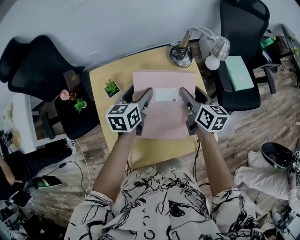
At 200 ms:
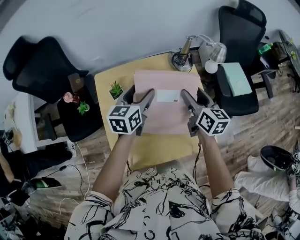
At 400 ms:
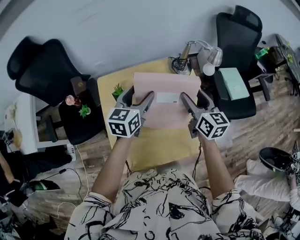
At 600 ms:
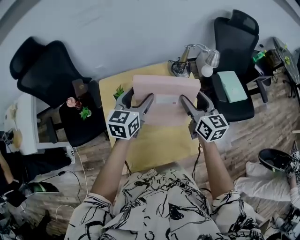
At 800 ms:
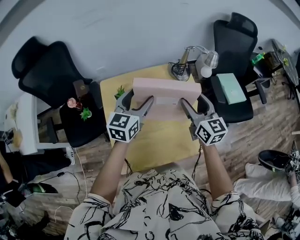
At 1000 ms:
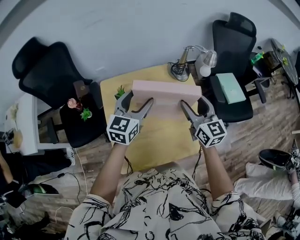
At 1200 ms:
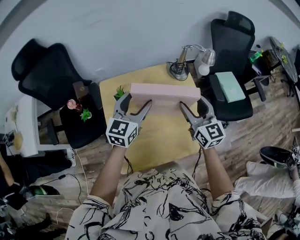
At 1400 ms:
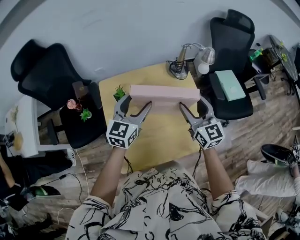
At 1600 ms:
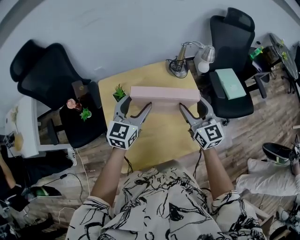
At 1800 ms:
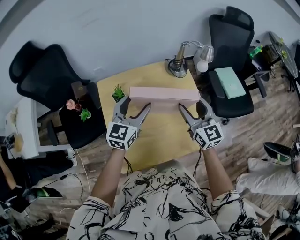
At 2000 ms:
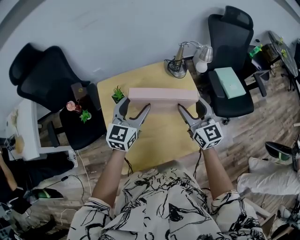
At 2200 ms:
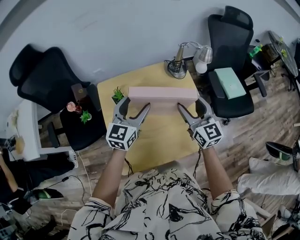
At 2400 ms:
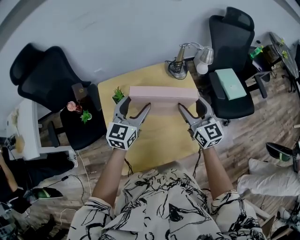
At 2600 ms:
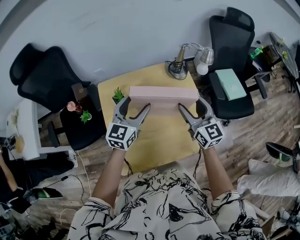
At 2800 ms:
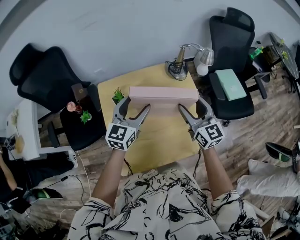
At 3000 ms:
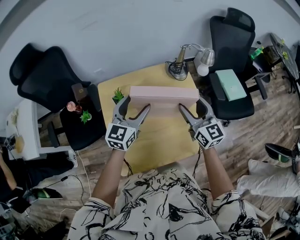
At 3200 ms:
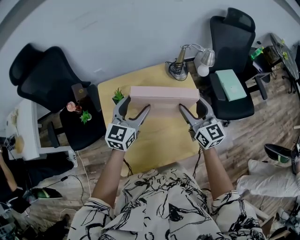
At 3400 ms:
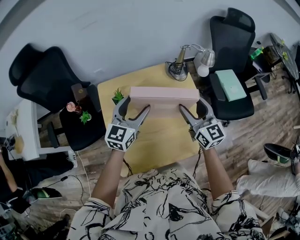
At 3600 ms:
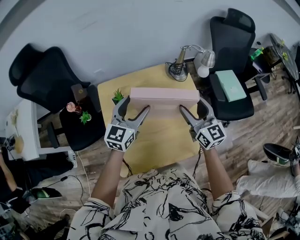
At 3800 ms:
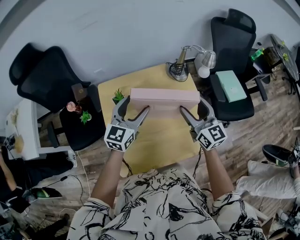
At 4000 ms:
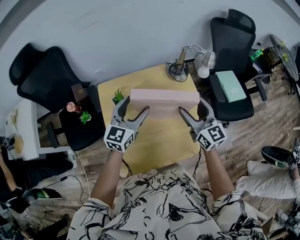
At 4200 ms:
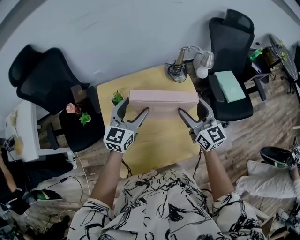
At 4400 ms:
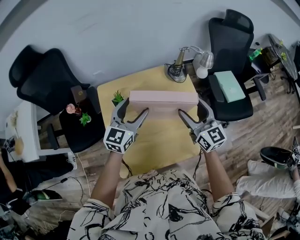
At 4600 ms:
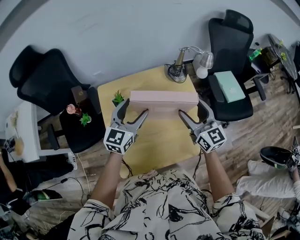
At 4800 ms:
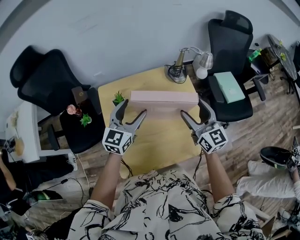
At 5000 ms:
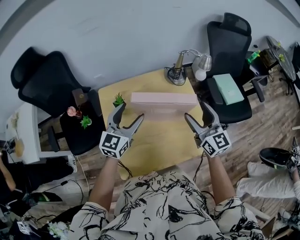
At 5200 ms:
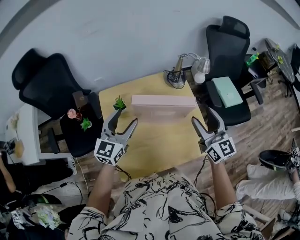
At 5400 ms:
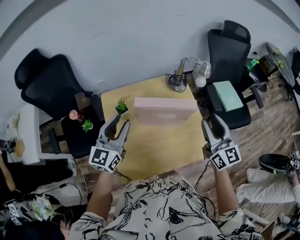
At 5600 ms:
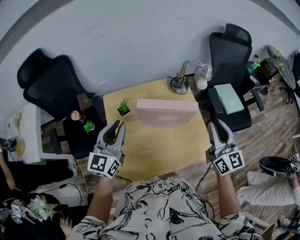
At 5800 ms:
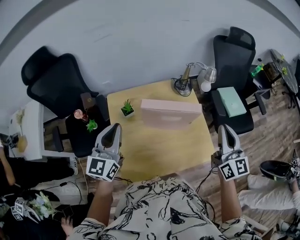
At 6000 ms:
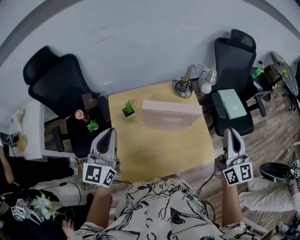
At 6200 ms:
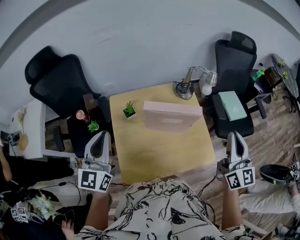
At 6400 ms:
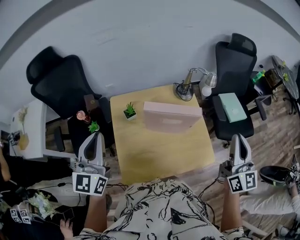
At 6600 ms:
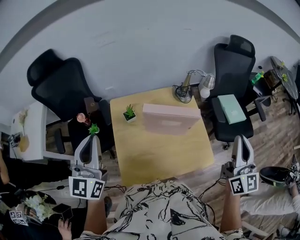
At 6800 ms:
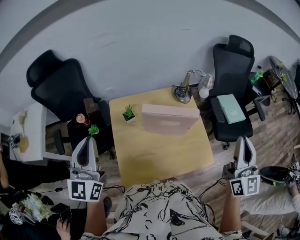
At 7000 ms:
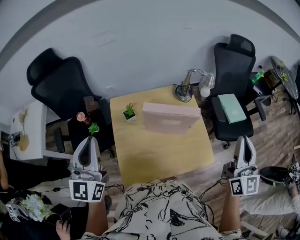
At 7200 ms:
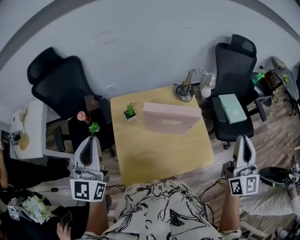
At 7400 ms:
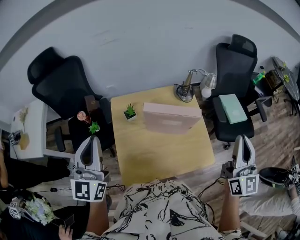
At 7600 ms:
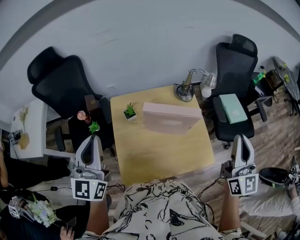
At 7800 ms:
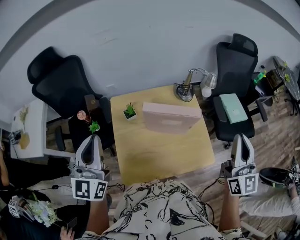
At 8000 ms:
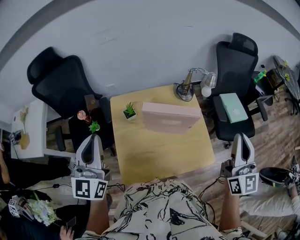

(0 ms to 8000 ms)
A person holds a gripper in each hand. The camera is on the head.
0 ms - 1600 ms: The grippers both shift upward and backward by some 15 cm. The left gripper rotates approximately 30 degrees. The right gripper turns by some 40 degrees.
1600 ms - 4800 ms: The grippers stay close to where they were, moving slightly.
4800 ms - 6400 ms: The left gripper is displaced upward, to the left and backward by roughly 25 cm, turns by roughly 30 degrees, and closes its fingers. Meanwhile the right gripper shifts about 20 cm upward, to the right and backward, swivels about 20 degrees, and closes up.
6400 ms - 8000 ms: The grippers stay close to where they were, moving slightly.

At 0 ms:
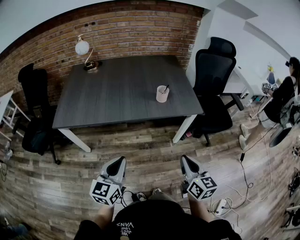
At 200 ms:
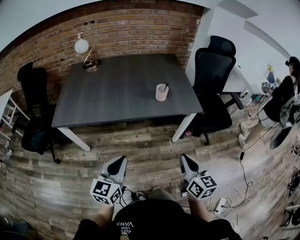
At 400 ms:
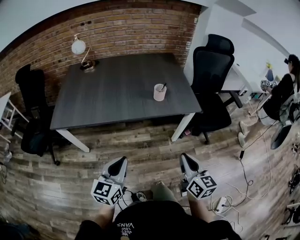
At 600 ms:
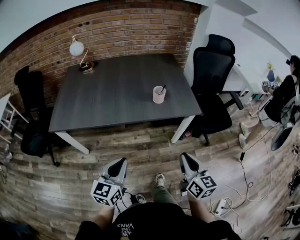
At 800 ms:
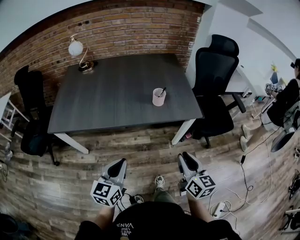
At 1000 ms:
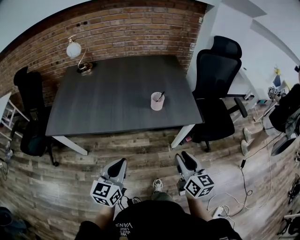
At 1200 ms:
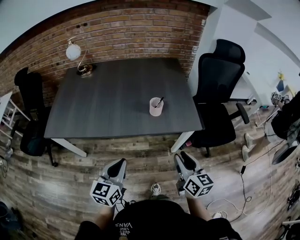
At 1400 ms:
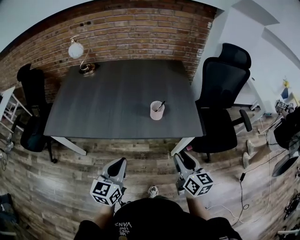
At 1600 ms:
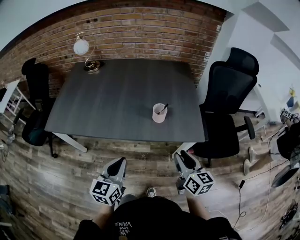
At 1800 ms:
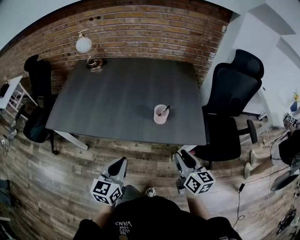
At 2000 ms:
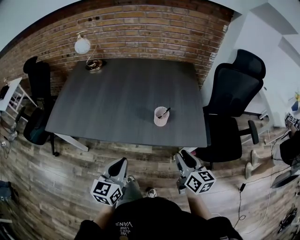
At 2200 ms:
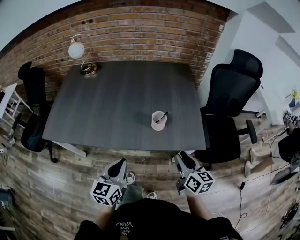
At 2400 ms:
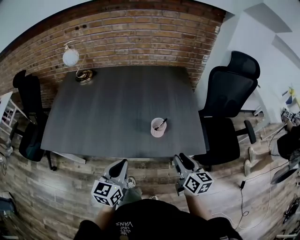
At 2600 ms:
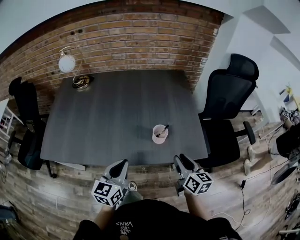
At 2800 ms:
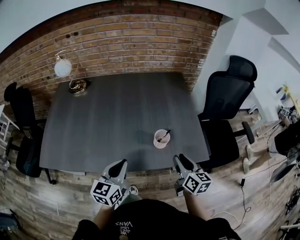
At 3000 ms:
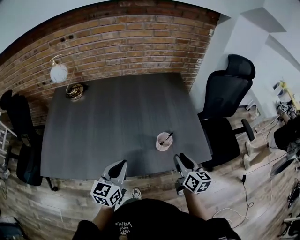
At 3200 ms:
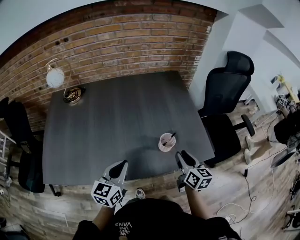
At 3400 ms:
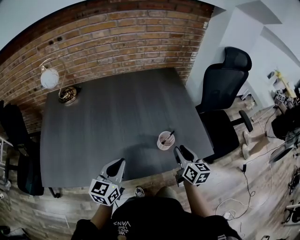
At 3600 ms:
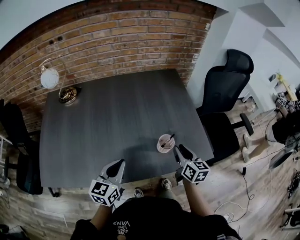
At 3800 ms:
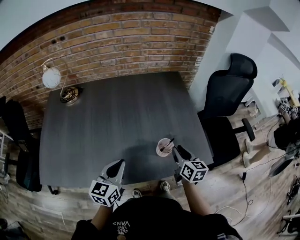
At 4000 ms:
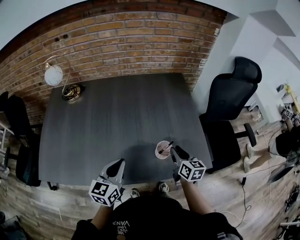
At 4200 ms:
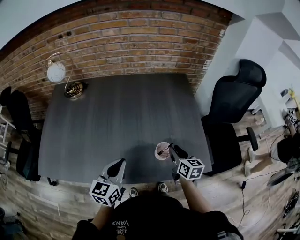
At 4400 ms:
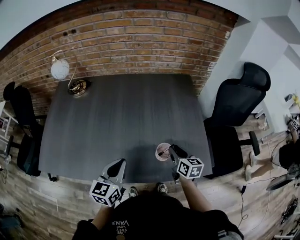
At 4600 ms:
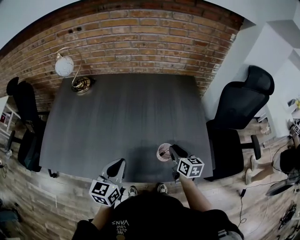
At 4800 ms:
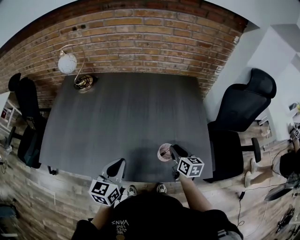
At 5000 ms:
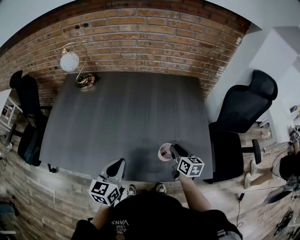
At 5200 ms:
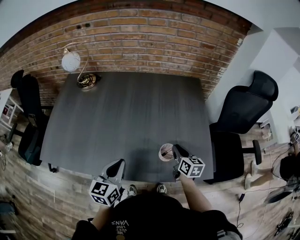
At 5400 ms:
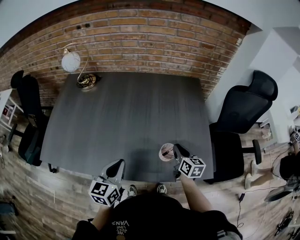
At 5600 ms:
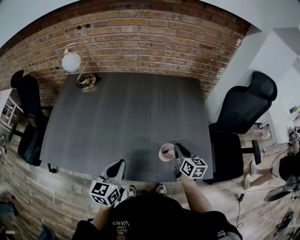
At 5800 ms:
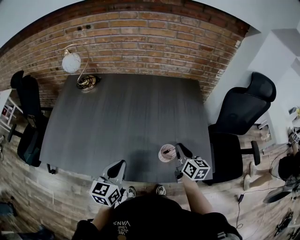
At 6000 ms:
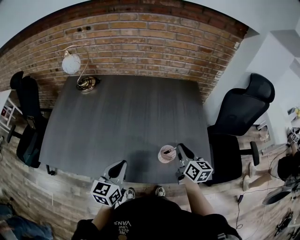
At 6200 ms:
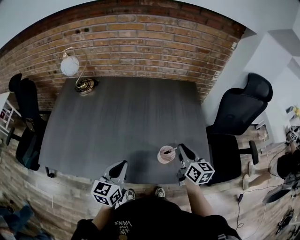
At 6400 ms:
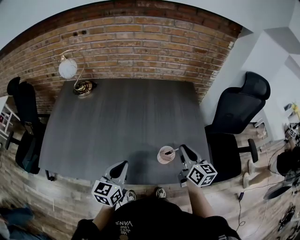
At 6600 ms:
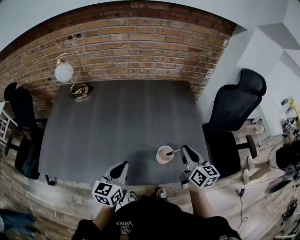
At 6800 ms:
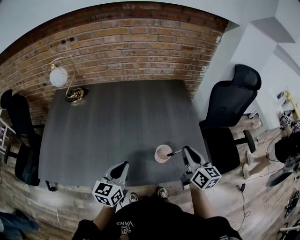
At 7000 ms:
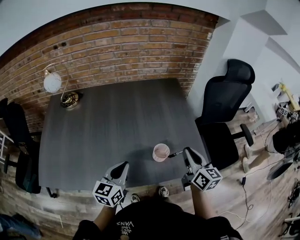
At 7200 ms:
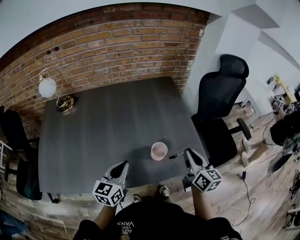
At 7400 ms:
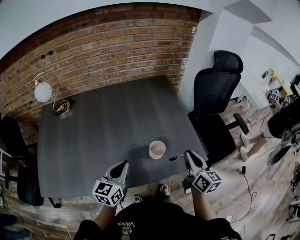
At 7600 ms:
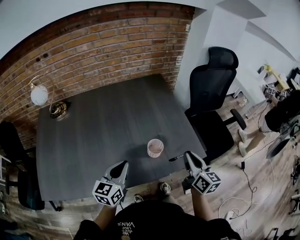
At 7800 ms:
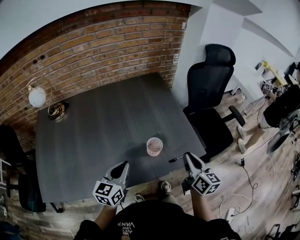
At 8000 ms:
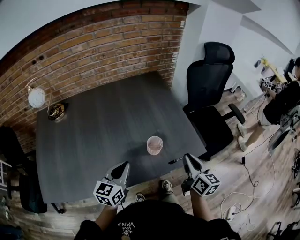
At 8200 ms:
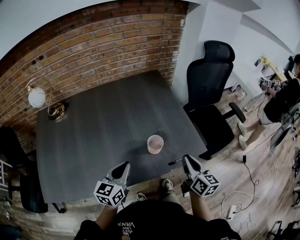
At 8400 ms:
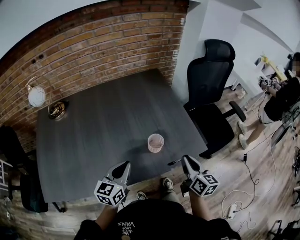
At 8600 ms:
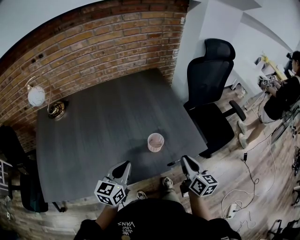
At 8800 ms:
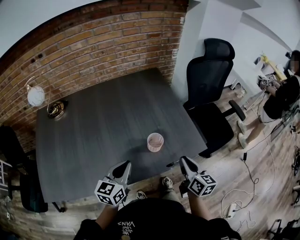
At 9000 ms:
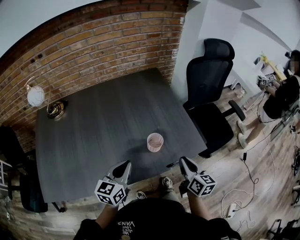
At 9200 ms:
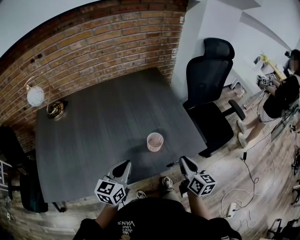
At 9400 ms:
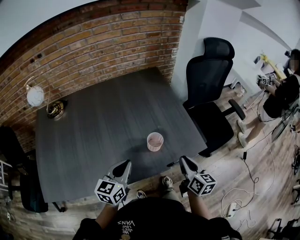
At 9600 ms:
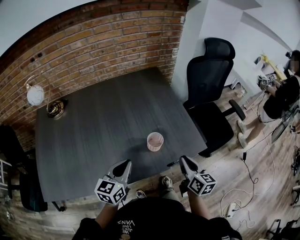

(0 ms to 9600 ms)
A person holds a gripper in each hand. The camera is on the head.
0 ms - 1600 ms: The left gripper moves forward and to the right, some 20 cm. The right gripper shifts roughly 25 cm forward, and opens up.
1600 ms - 3200 ms: The grippers both shift forward by about 20 cm.
3200 ms - 4800 ms: The right gripper goes approximately 15 cm forward and downward.
4800 ms - 6400 ms: The right gripper moves upward, about 10 cm.
6400 ms - 8000 ms: The right gripper goes roughly 15 cm backward and to the right, and turns by about 20 degrees. Meanwhile the left gripper swivels roughly 20 degrees.
8000 ms - 9600 ms: The grippers make only small movements.

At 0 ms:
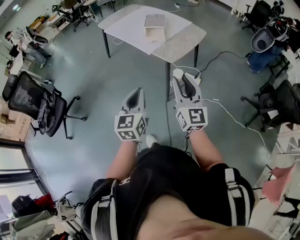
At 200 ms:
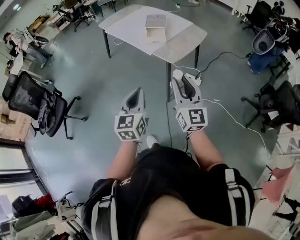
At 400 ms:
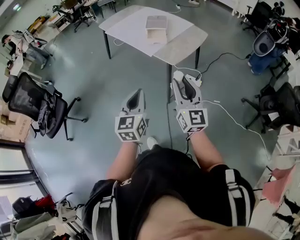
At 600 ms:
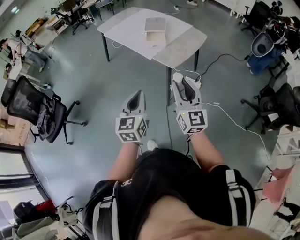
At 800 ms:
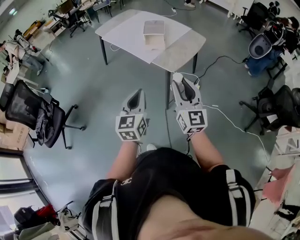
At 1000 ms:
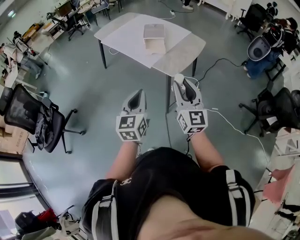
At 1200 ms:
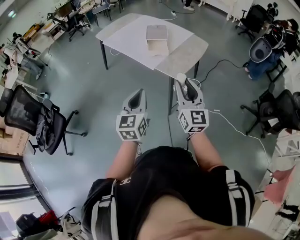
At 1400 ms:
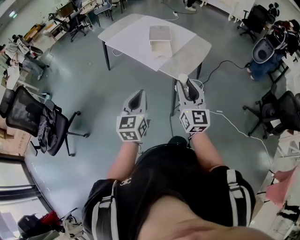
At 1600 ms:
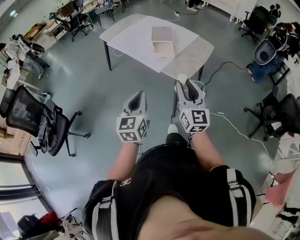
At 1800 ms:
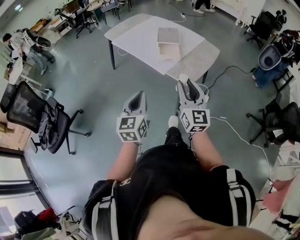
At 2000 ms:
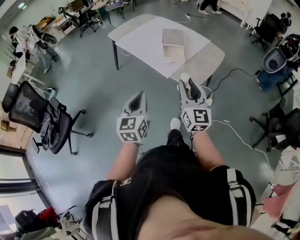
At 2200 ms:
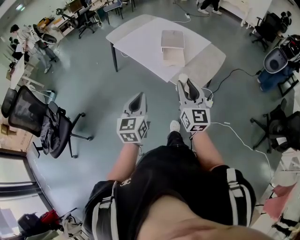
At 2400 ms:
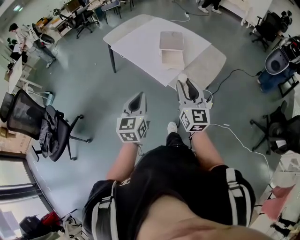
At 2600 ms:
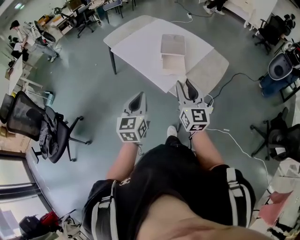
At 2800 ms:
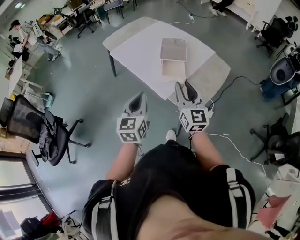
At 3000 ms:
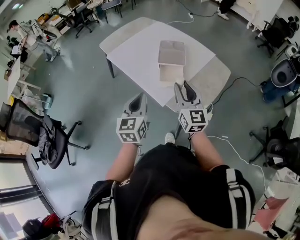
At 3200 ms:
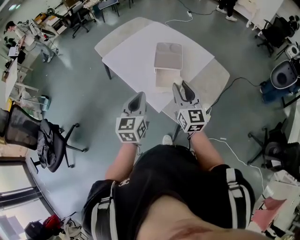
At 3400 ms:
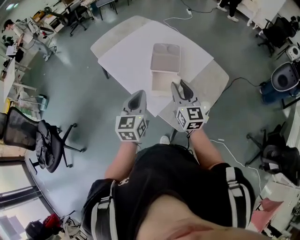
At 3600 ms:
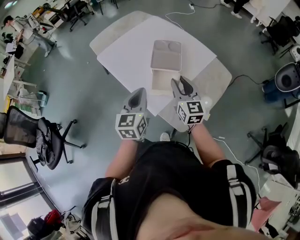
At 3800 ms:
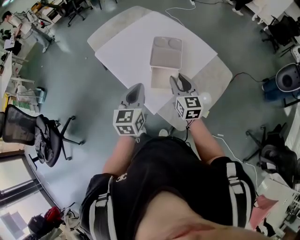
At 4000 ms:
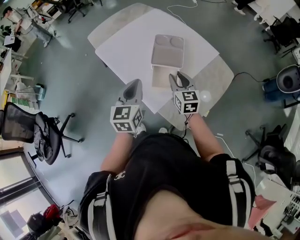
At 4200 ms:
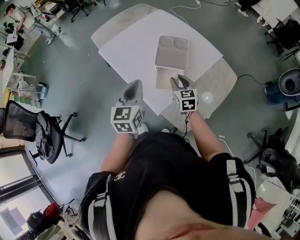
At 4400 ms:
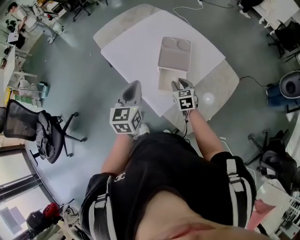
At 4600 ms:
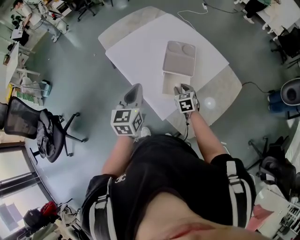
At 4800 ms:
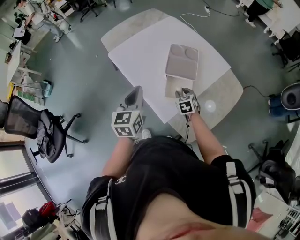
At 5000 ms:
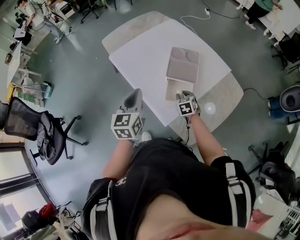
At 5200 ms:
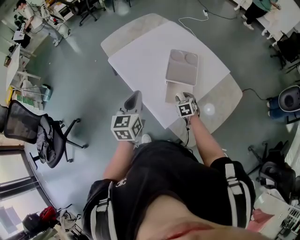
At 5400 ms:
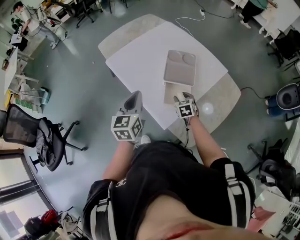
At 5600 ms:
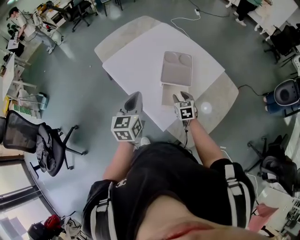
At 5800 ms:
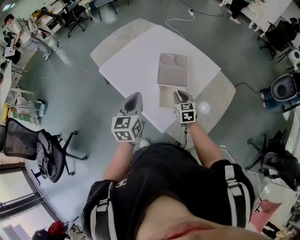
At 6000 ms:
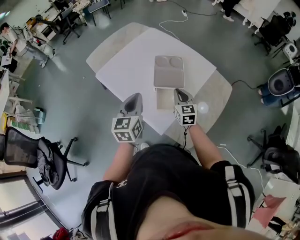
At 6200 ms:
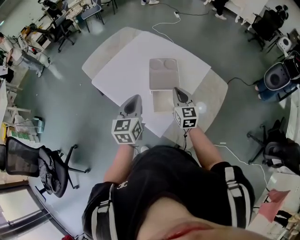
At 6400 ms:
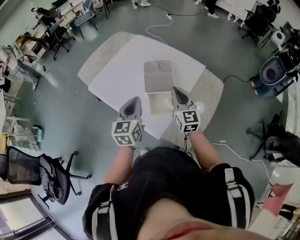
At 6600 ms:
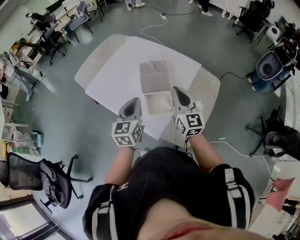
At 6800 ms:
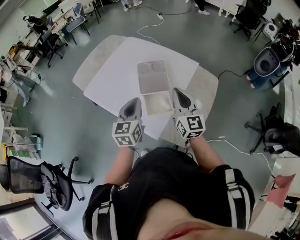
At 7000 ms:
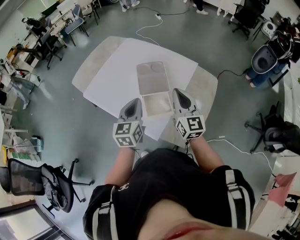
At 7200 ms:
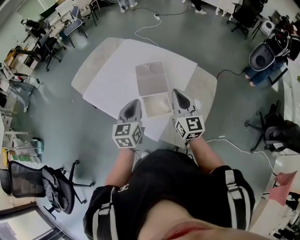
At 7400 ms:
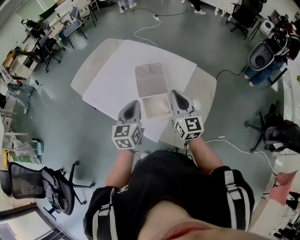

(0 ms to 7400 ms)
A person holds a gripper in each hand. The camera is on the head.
0 ms - 1400 ms: Both grippers move forward and to the left, some 15 cm.
1400 ms - 3000 ms: Both grippers move forward, roughly 35 cm.
3000 ms - 4400 ms: The right gripper shifts approximately 30 cm downward and forward, and angles its fingers downward, by some 40 degrees. The left gripper travels forward by approximately 15 cm.
4400 ms - 6000 ms: The left gripper is displaced forward by some 5 cm; the right gripper shifts approximately 5 cm upward, and closes its fingers.
6000 ms - 7400 ms: The right gripper shifts about 15 cm upward, and changes its angle by roughly 20 degrees. Meanwhile the left gripper goes approximately 5 cm to the right.
